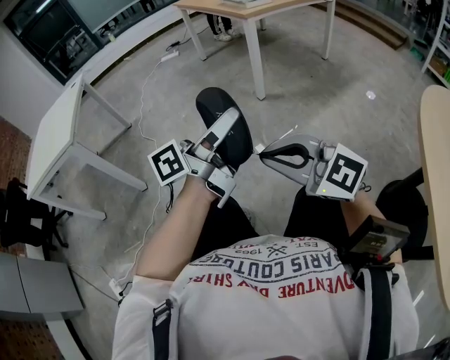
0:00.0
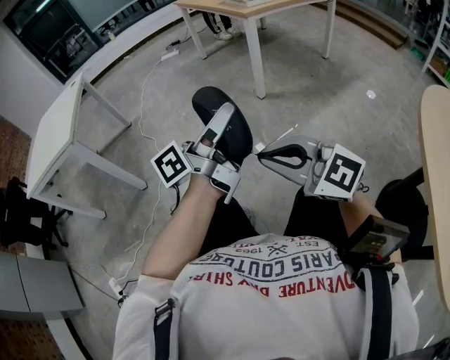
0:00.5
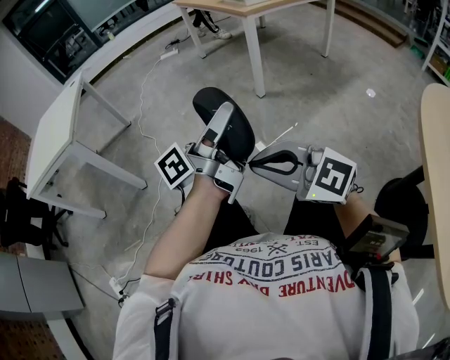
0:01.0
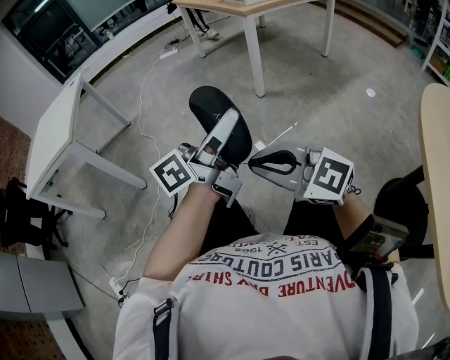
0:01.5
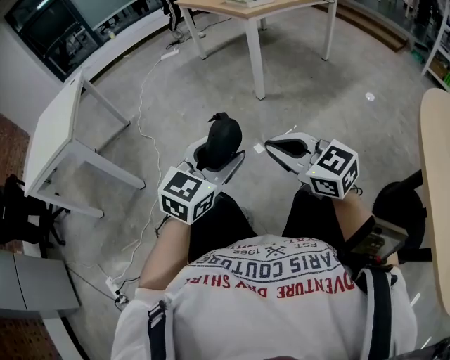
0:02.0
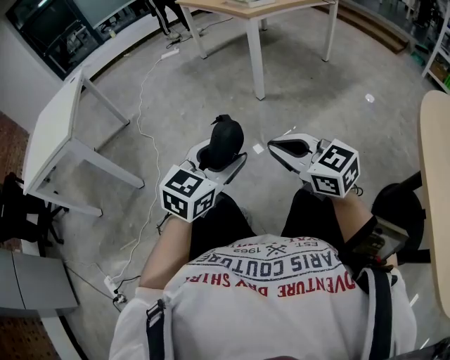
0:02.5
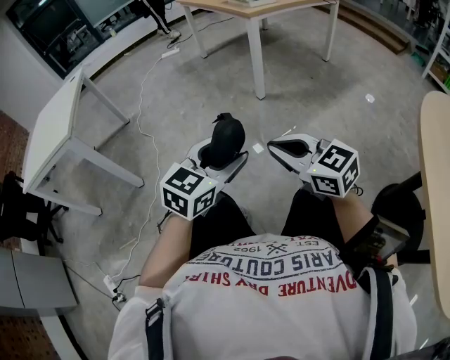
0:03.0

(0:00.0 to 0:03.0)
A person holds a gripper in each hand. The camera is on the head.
0:00.0 - 0:01.5: The grippers stay close to where they were, moving slightly.
0:01.5 - 0:03.0: The left gripper goes approximately 10 cm downward, and points its fingers about 40 degrees further downward; the right gripper shifts about 5 cm forward, and turns by about 20 degrees.

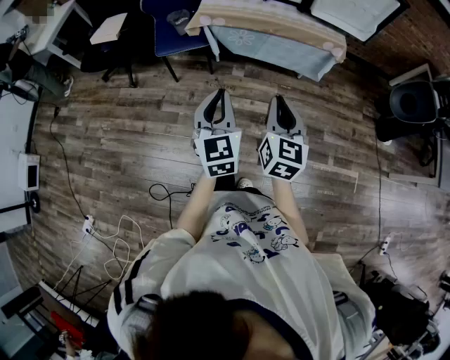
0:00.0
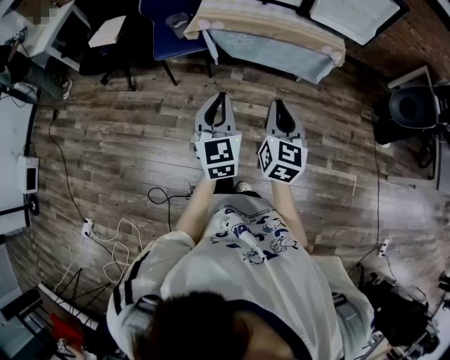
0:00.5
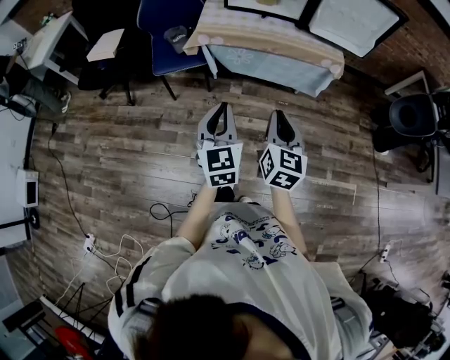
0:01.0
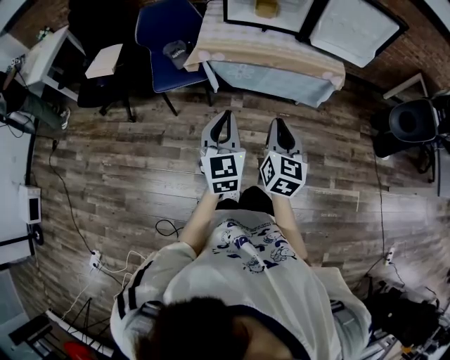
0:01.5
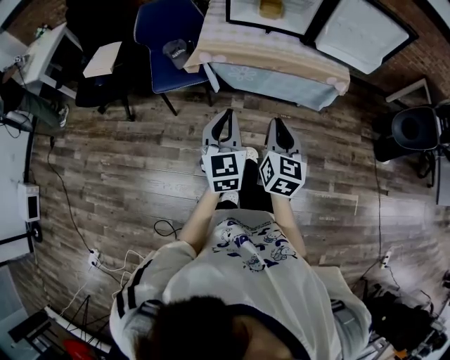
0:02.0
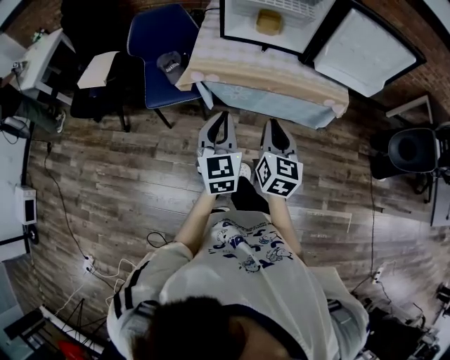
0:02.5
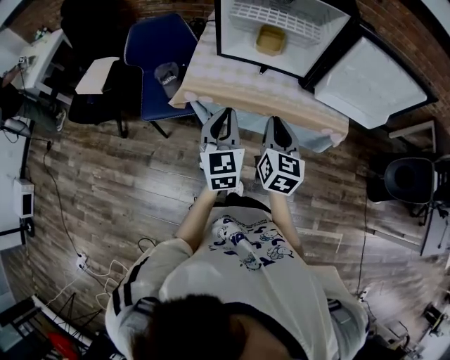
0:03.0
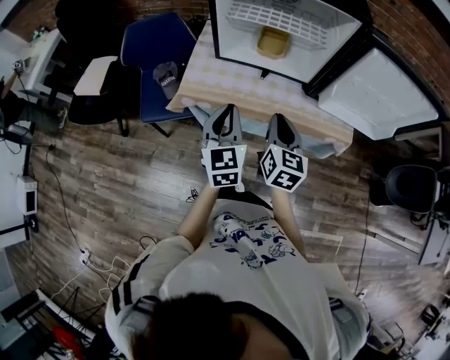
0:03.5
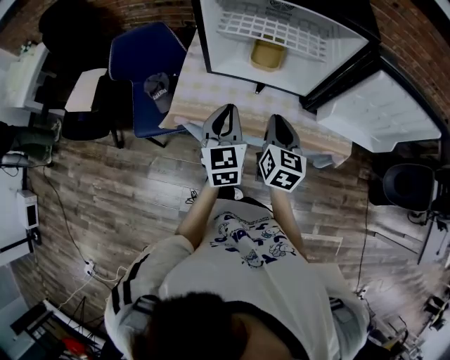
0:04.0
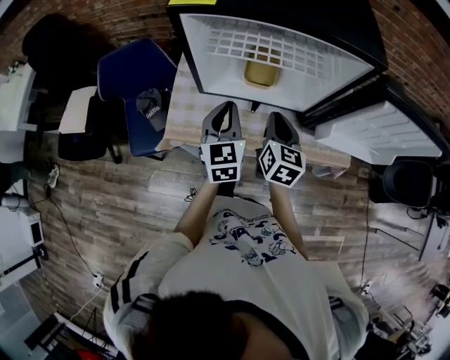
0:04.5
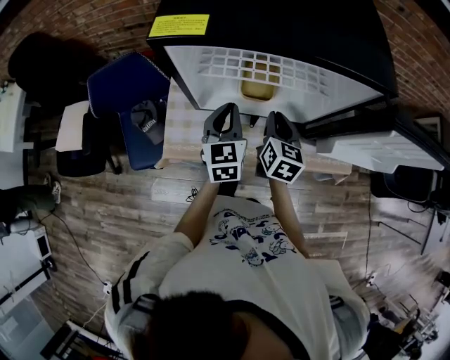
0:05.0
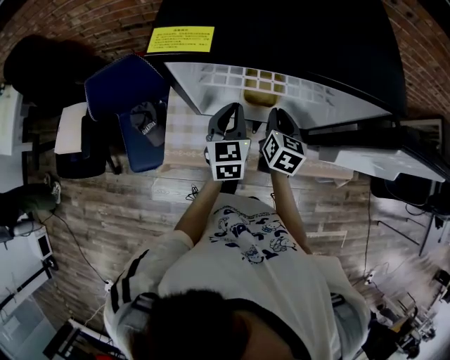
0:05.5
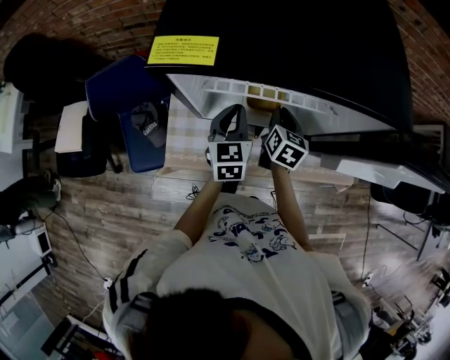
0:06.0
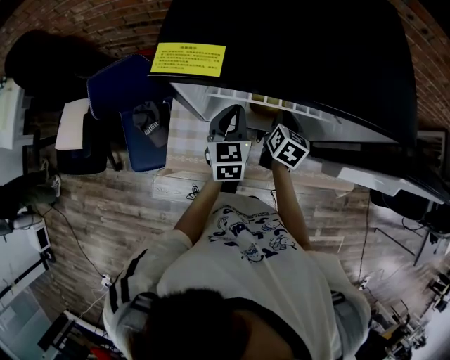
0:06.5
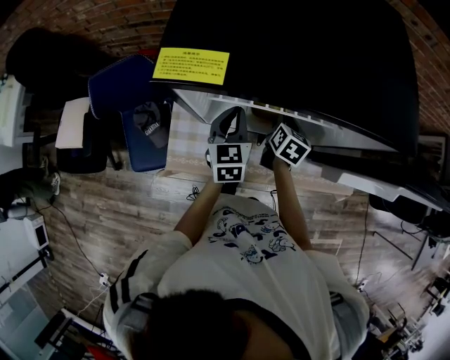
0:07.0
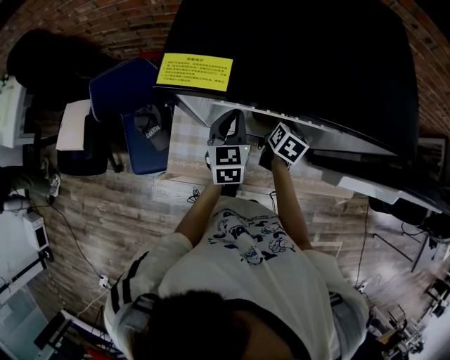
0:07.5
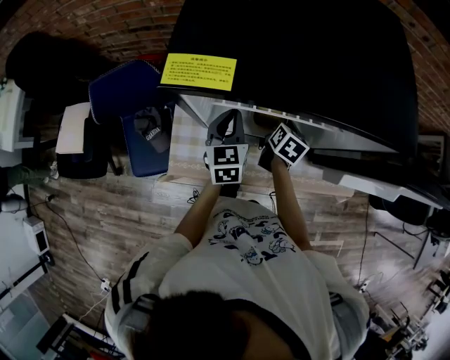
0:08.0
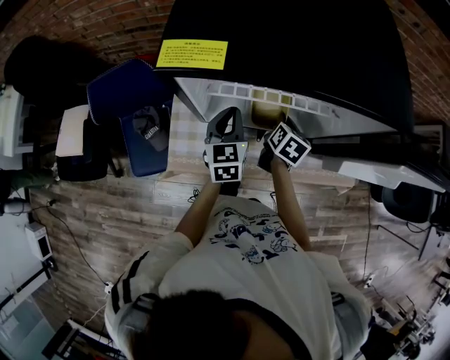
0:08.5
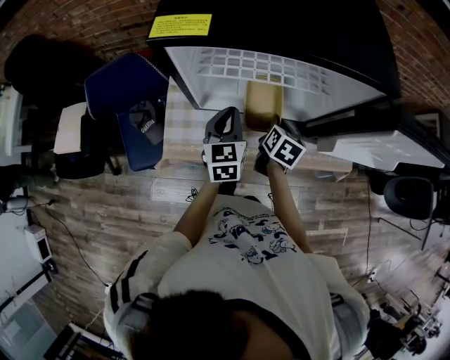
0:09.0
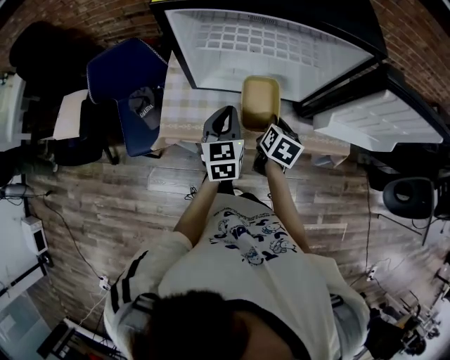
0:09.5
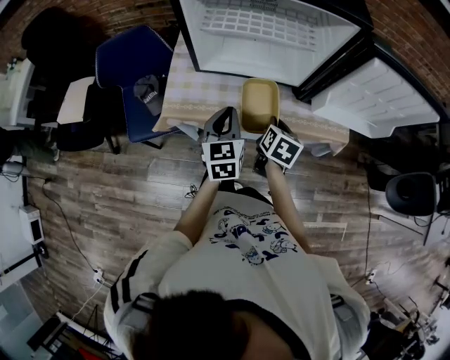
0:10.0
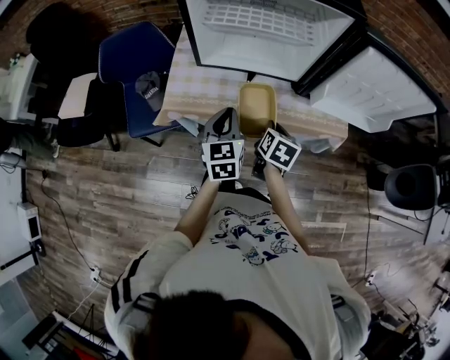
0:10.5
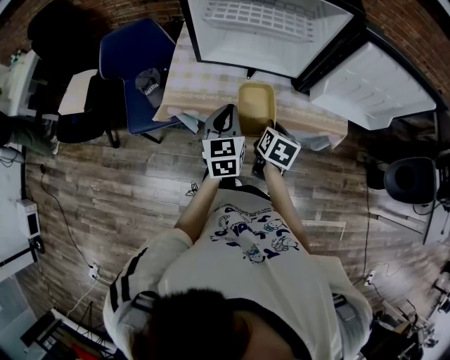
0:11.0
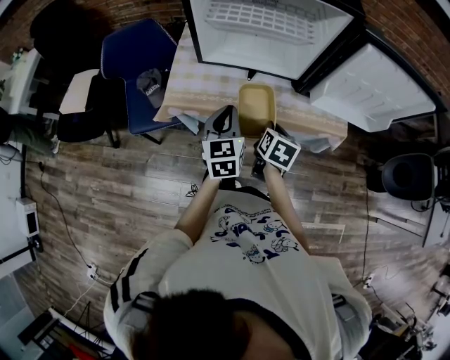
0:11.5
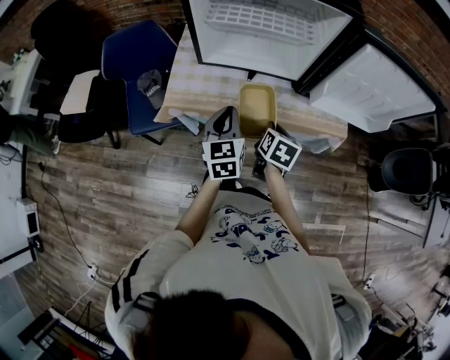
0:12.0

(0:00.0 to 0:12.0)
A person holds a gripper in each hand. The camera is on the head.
0:00.0 - 0:02.0: The two grippers go some 15 cm forward.
0:02.0 - 0:04.0: The two grippers travel together, forward, some 40 cm.
0:04.0 - 0:06.0: Both grippers move forward, approximately 25 cm.
0:06.0 - 0:08.0: The right gripper shifts by some 5 cm.
0:08.0 - 0:10.0: The grippers both shift backward by some 25 cm.
0:10.0 - 0:12.0: The right gripper goes approximately 5 cm backward.

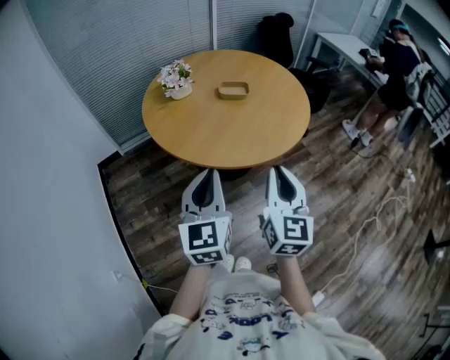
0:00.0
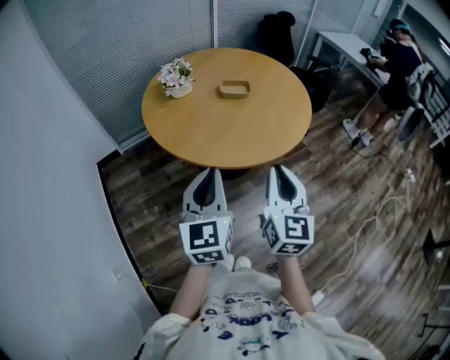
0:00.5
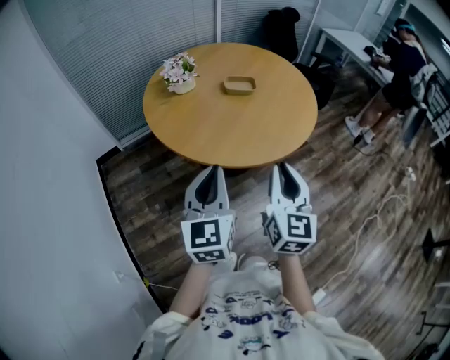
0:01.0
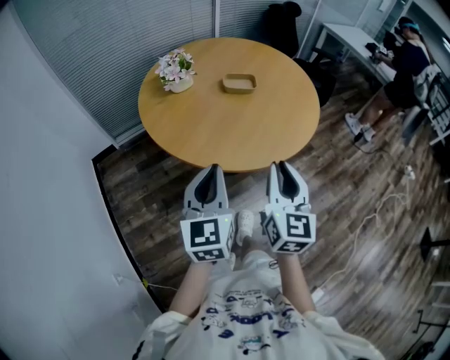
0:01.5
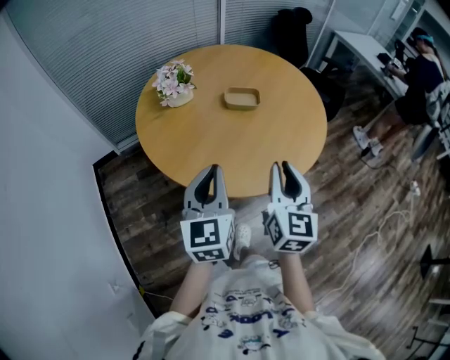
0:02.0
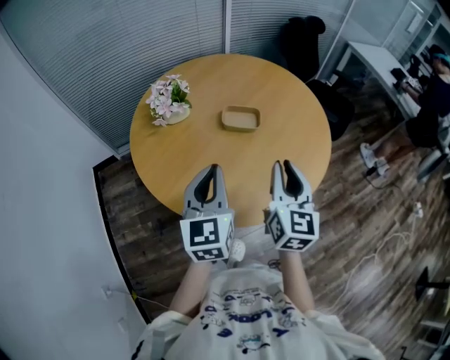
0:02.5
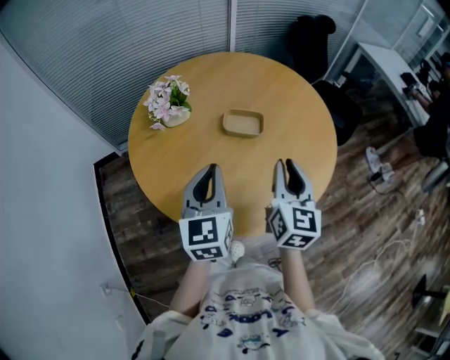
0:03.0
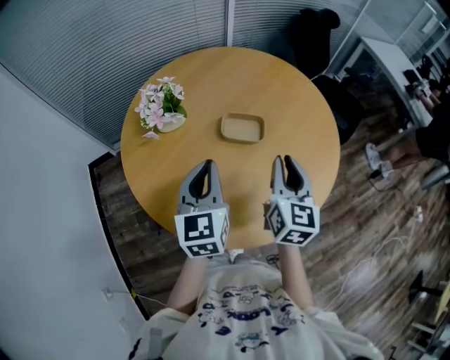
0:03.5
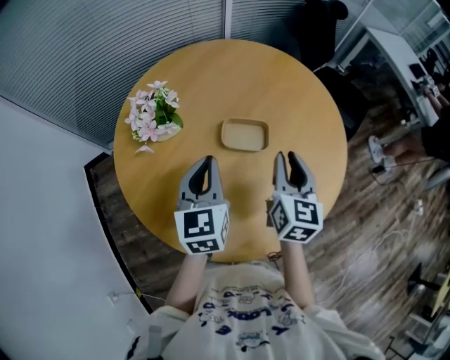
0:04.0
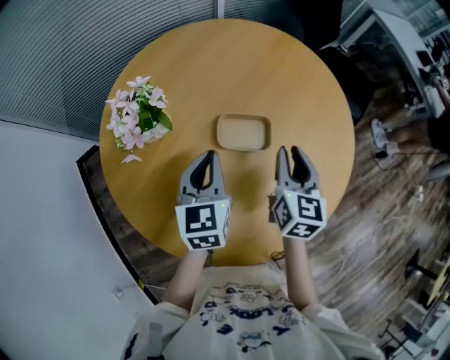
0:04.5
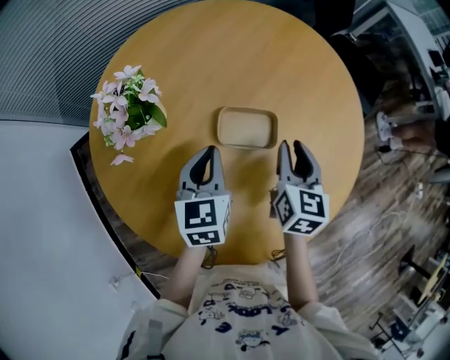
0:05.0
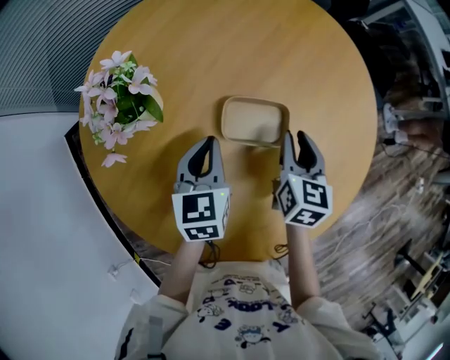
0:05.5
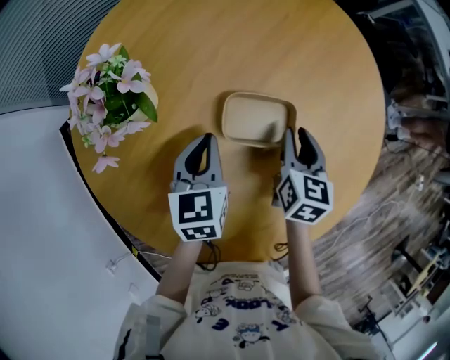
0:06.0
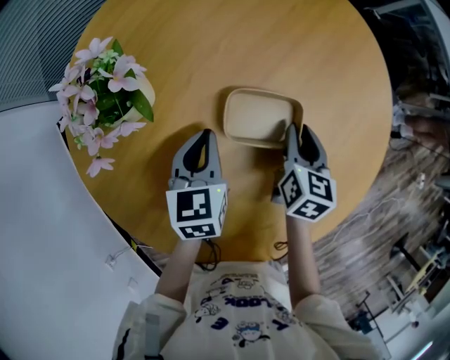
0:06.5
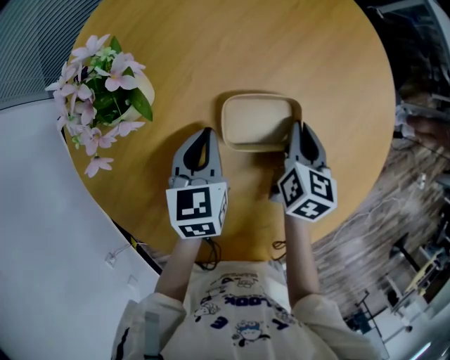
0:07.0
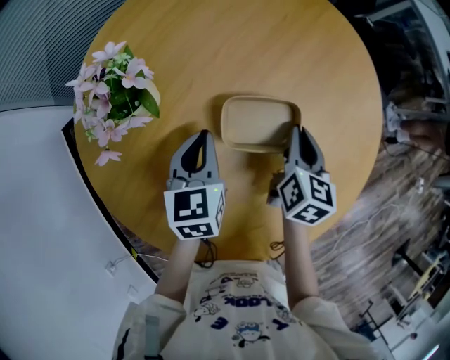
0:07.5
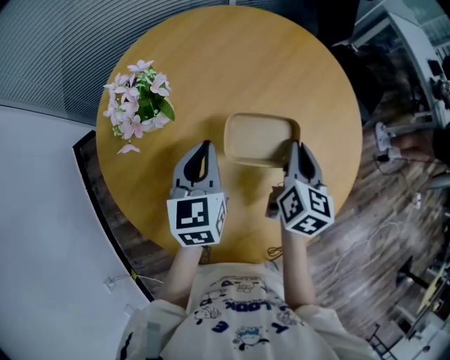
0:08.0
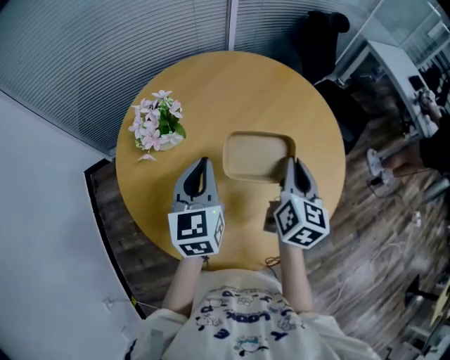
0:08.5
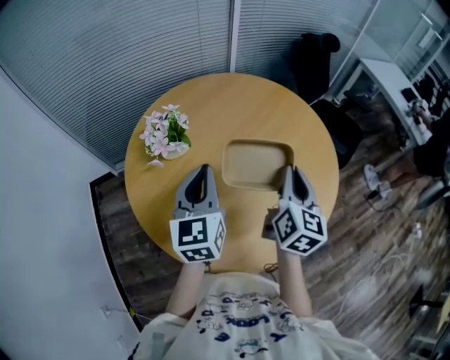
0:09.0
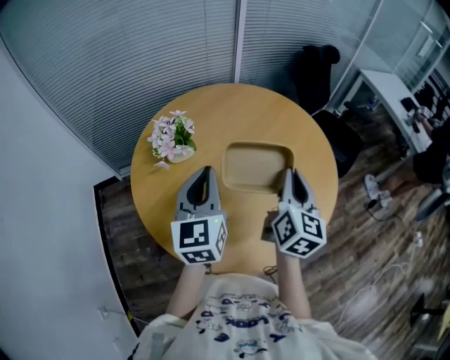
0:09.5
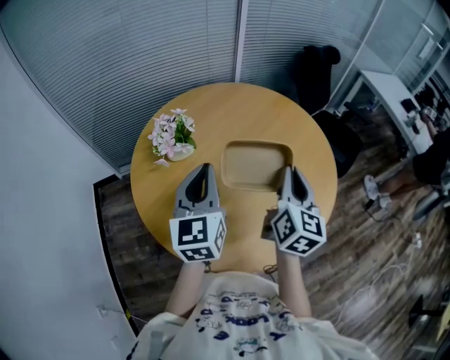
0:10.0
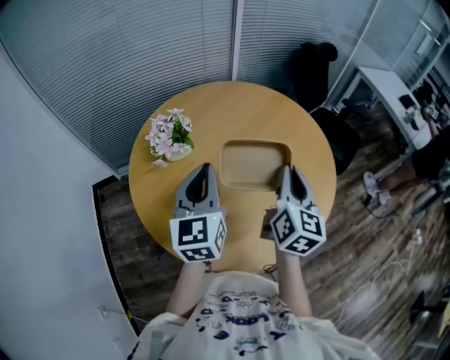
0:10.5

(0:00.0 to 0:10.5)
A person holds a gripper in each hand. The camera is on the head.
0:00.0 - 0:02.0: Both grippers move forward, about 20 cm.
0:02.0 - 0:04.0: Both grippers move forward, some 30 cm.
0:04.0 - 0:06.5: Both grippers travel together downward and forward, approximately 25 cm. The right gripper swivels roughly 20 degrees, while the left gripper rotates some 20 degrees.
0:06.5 - 0:08.5: The grippers both shift upward and backward by about 25 cm. The right gripper swivels some 20 degrees. Meanwhile the left gripper changes its angle by about 20 degrees.
0:08.5 - 0:10.5: The grippers both shift upward and backward by about 10 cm.

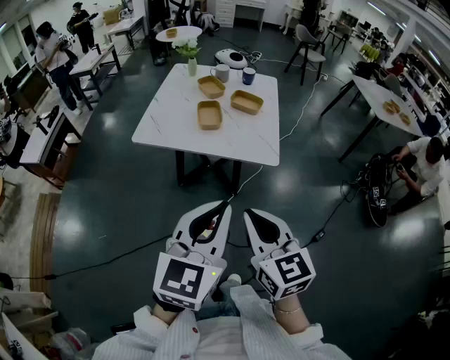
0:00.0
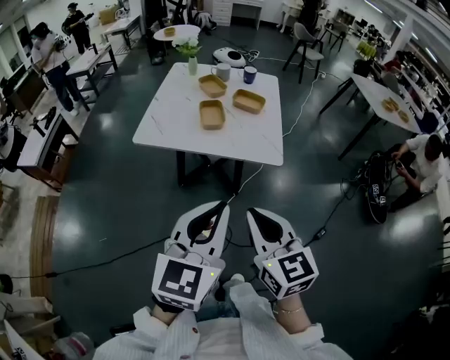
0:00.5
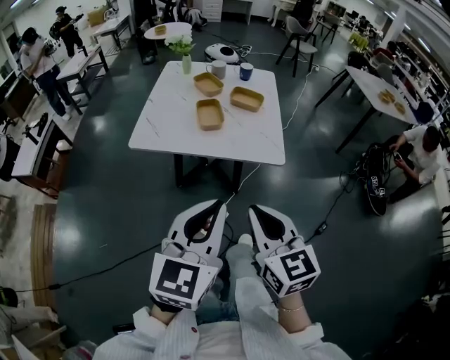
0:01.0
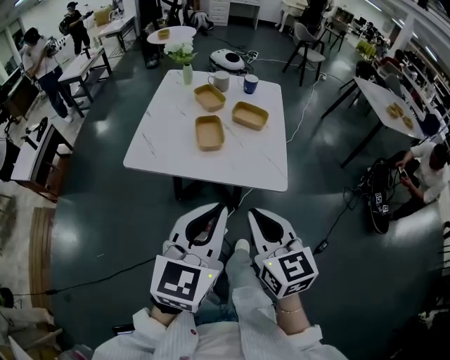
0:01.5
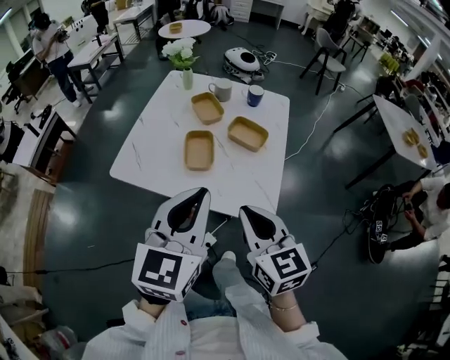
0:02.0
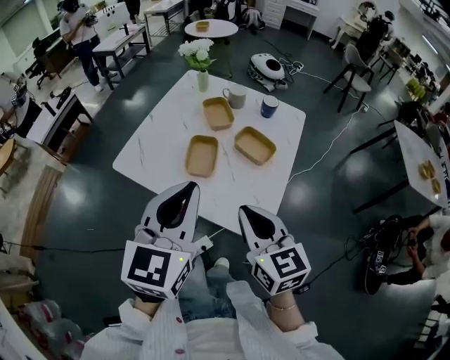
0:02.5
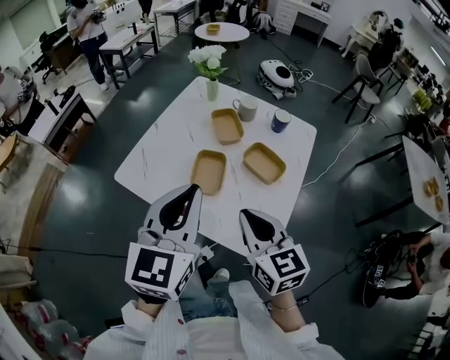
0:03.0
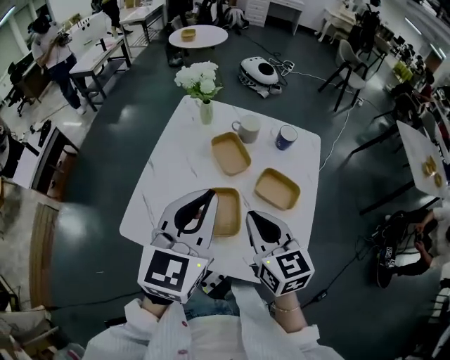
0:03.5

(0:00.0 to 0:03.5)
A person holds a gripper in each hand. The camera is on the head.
0:00.0 - 0:02.0: The two grippers go some 25 cm forward.
0:02.0 - 0:03.5: The two grippers go roughly 25 cm forward.
